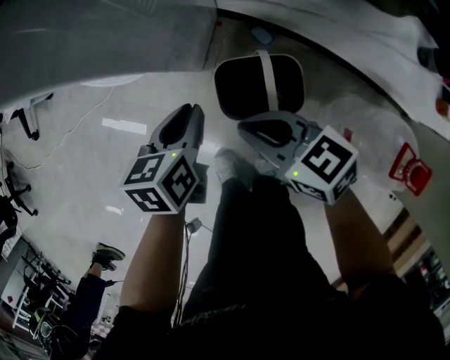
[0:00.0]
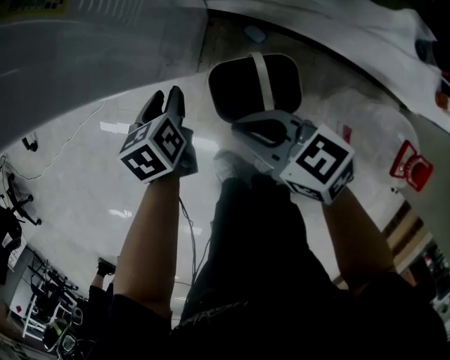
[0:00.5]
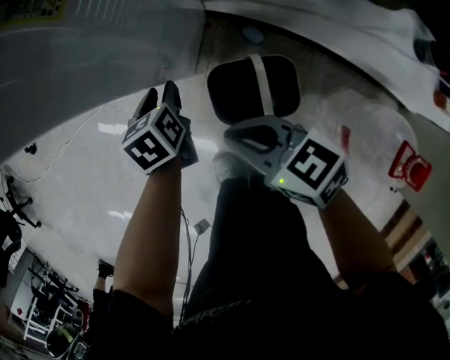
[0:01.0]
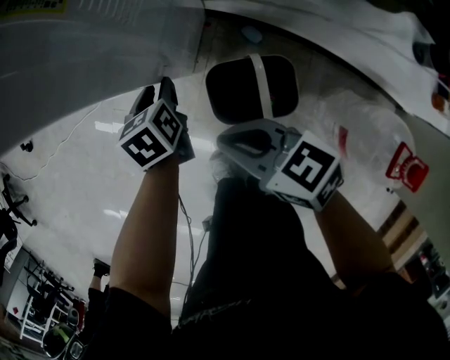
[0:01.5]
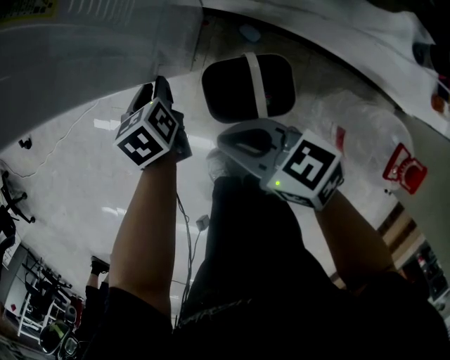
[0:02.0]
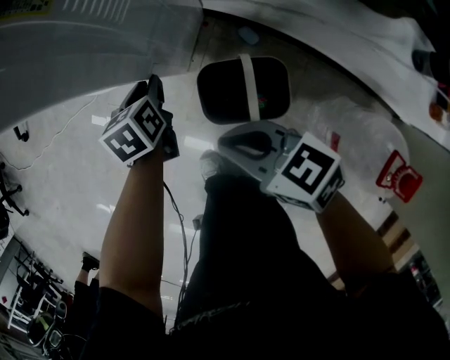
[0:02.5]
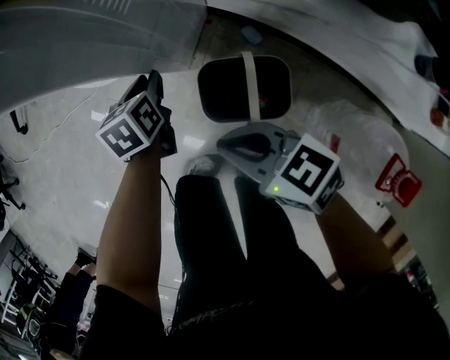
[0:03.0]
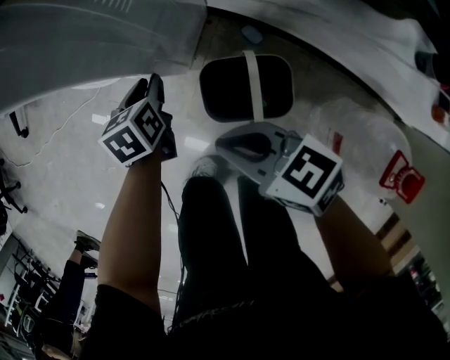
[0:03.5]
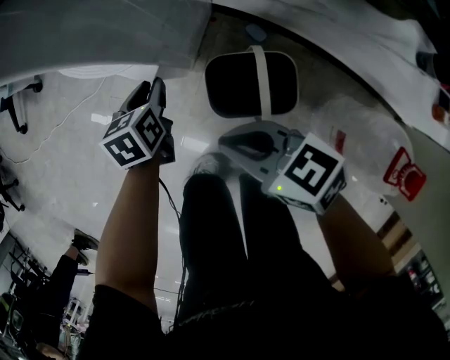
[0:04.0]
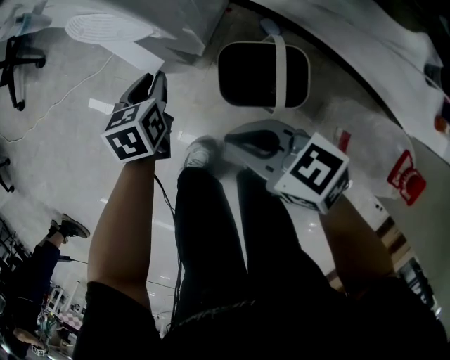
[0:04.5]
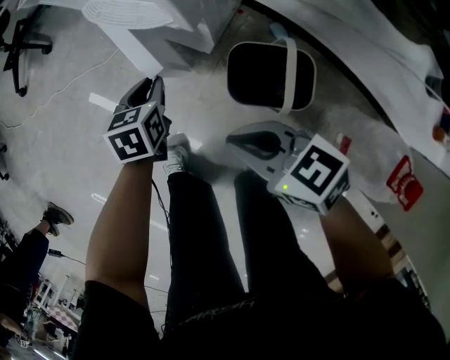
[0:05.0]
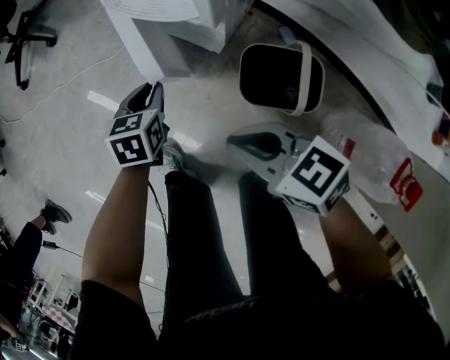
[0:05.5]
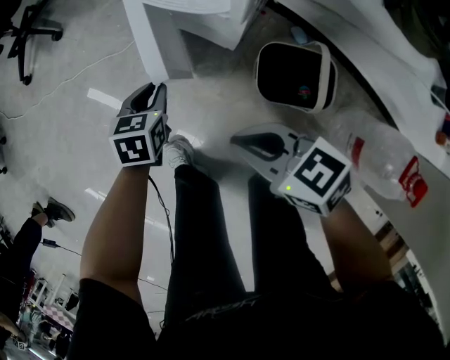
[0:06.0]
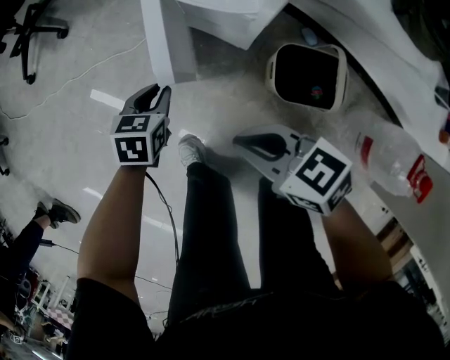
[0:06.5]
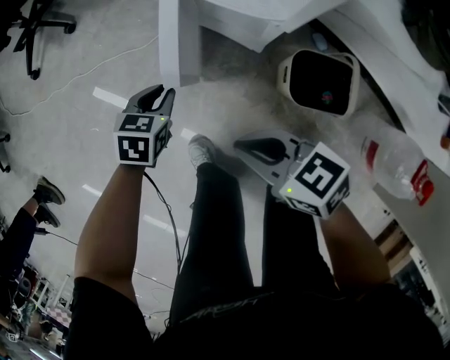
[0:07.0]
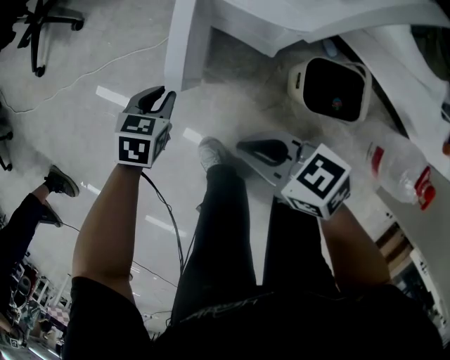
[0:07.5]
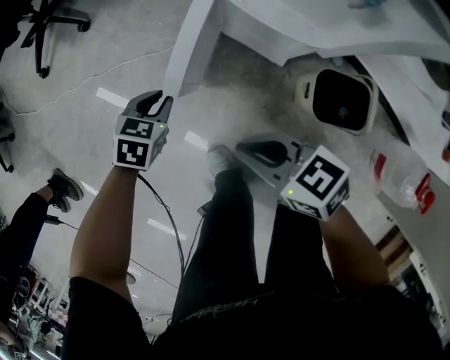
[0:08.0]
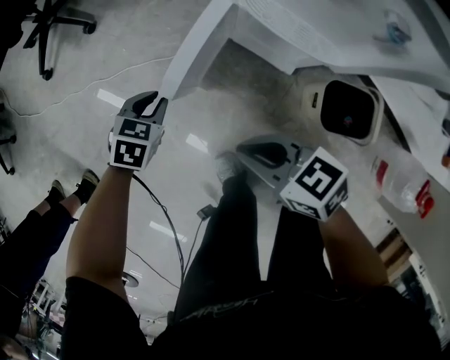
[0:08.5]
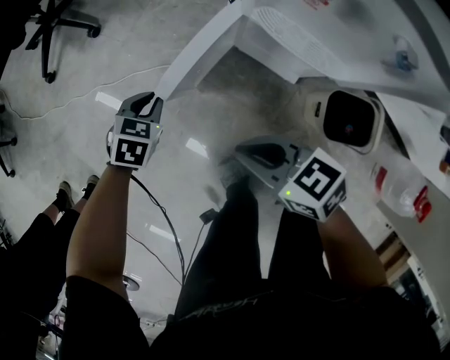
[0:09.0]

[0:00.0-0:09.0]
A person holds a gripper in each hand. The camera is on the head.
0:00.0 to 0:02.0: The left gripper goes some 10 cm forward and downward.
0:02.0 to 0:04.5: Both grippers travel together to the left, approximately 5 cm.
0:04.5 to 0:07.0: The grippers both shift to the left by some 20 cm.
0:07.0 to 0:09.0: Both grippers move forward and to the left, some 20 cm.

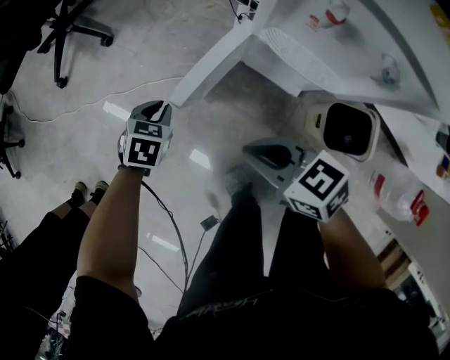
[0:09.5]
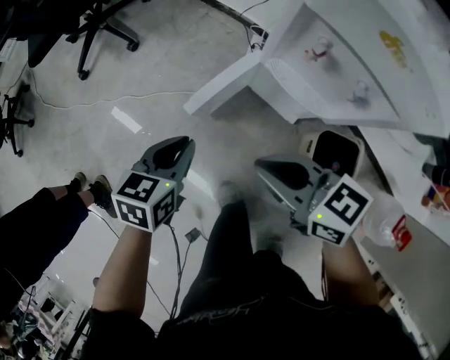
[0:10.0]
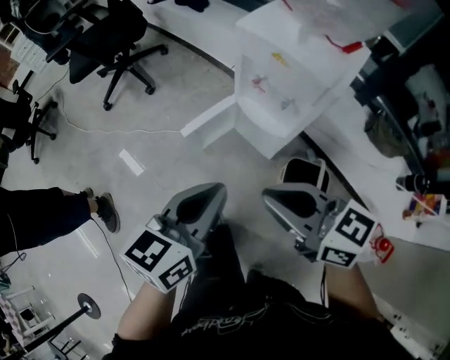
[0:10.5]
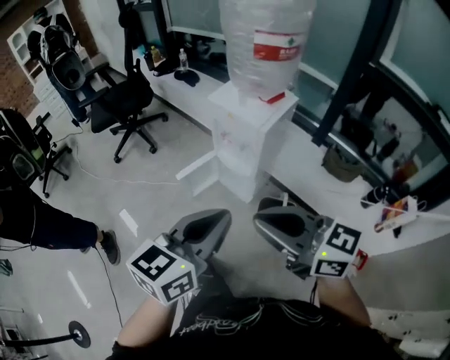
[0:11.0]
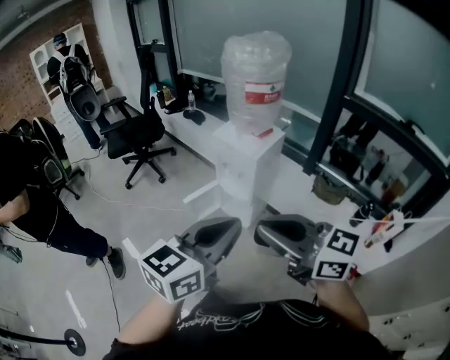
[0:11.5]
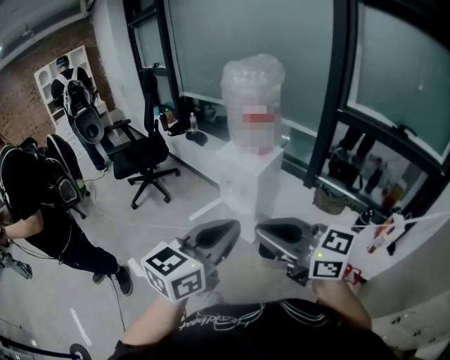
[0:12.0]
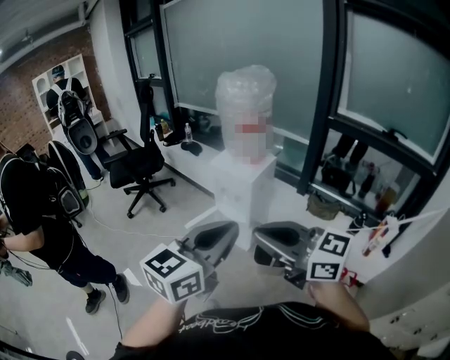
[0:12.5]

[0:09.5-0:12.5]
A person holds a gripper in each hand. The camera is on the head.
0:09.5 to 0:11.0: The grippers both shift upward and backward by about 70 cm. The left gripper points its fingers approximately 60 degrees further upward, while the right gripper rotates some 40 degrees.
0:11.0 to 0:12.5: Both grippers travel together upward and backward, about 20 cm.

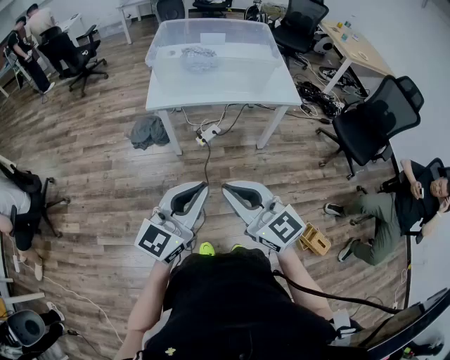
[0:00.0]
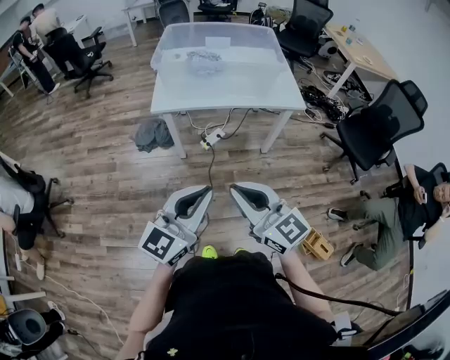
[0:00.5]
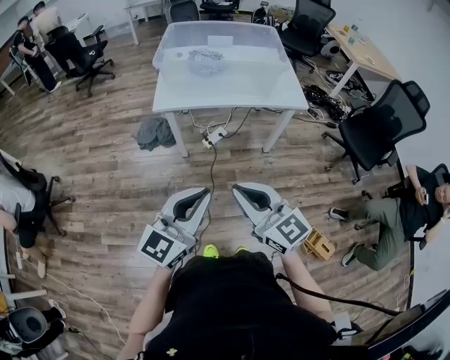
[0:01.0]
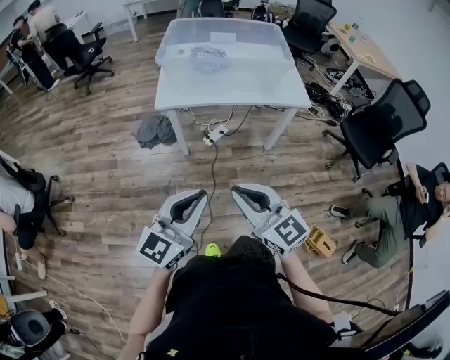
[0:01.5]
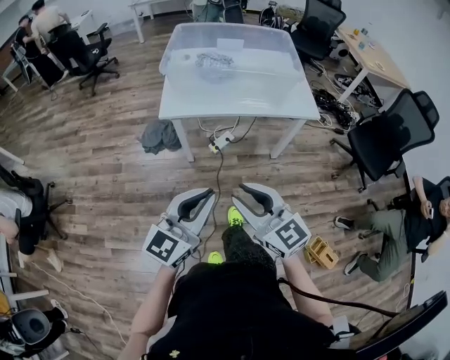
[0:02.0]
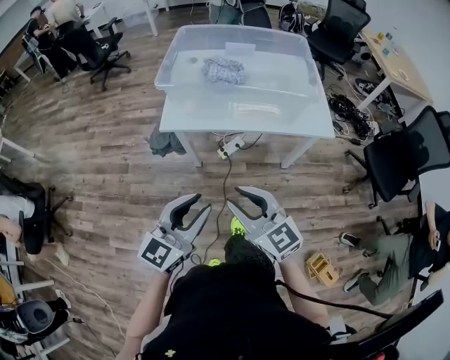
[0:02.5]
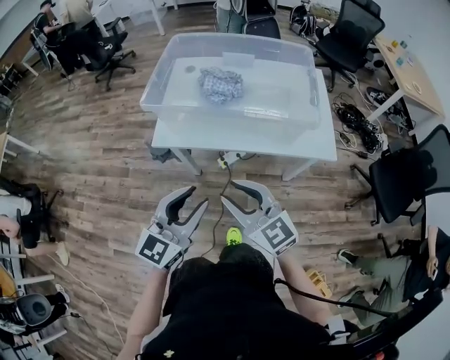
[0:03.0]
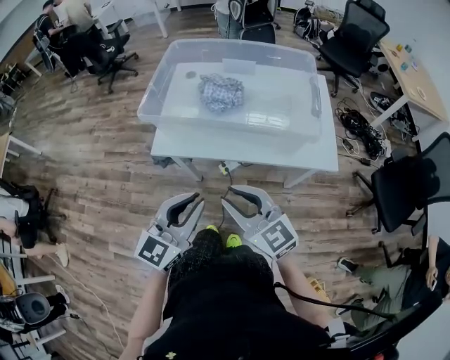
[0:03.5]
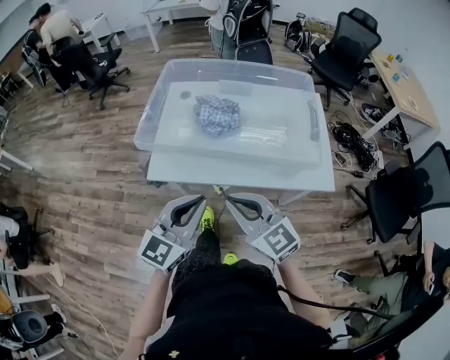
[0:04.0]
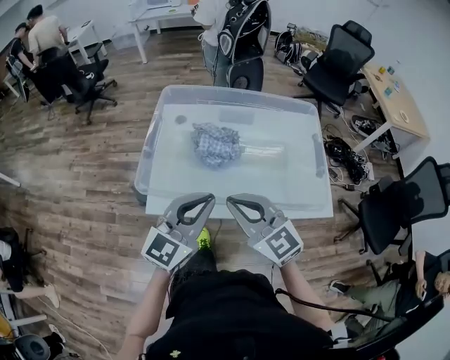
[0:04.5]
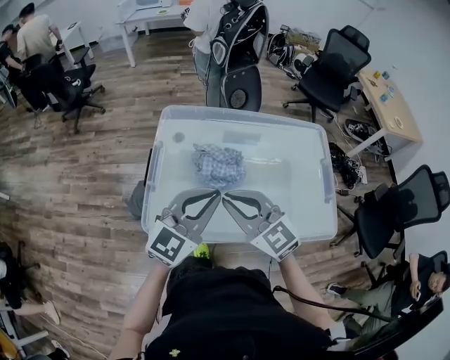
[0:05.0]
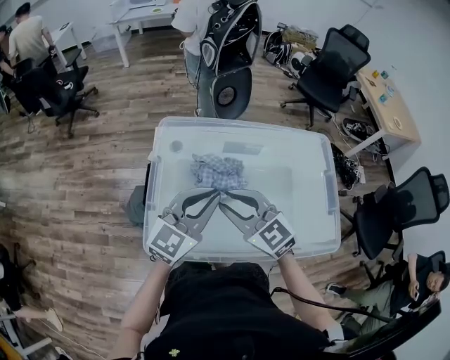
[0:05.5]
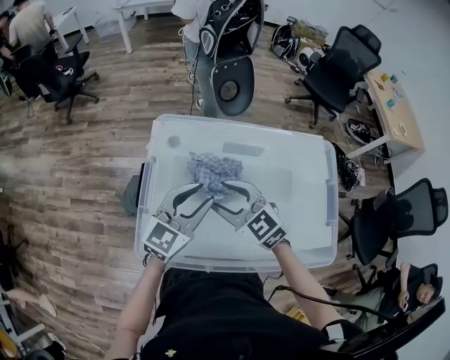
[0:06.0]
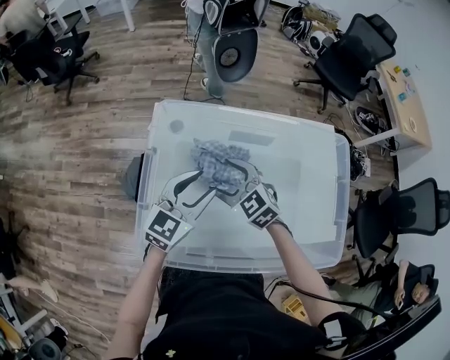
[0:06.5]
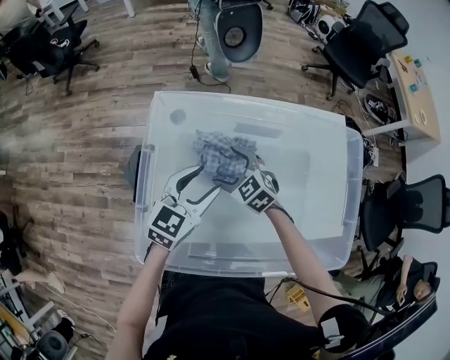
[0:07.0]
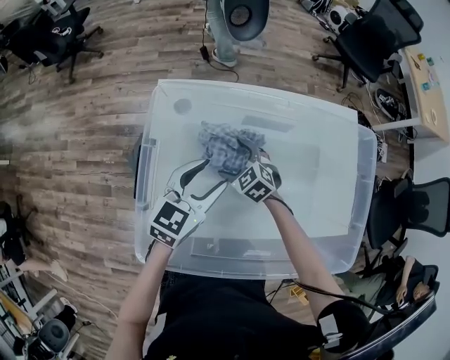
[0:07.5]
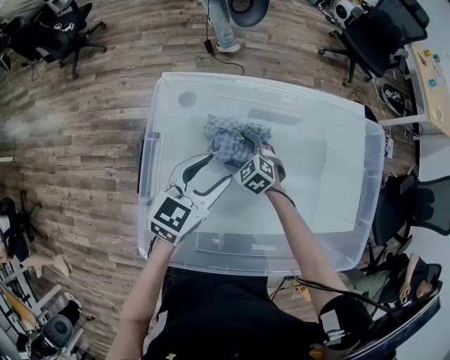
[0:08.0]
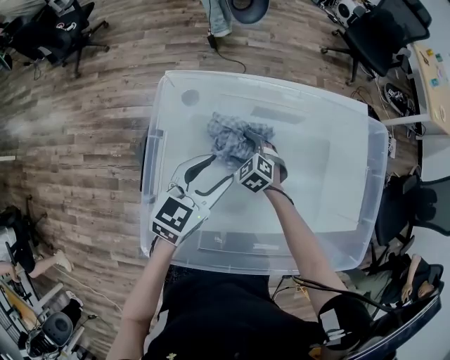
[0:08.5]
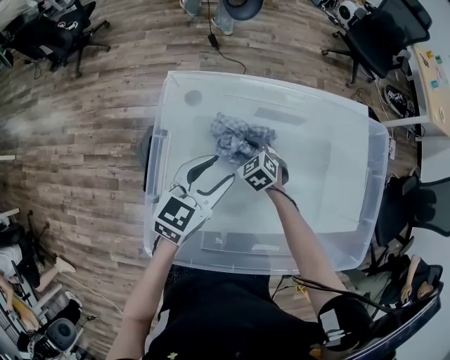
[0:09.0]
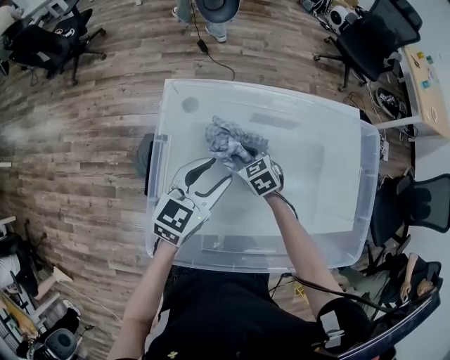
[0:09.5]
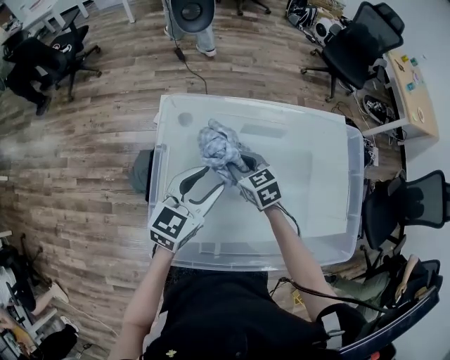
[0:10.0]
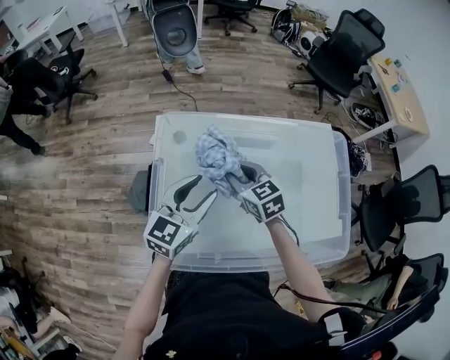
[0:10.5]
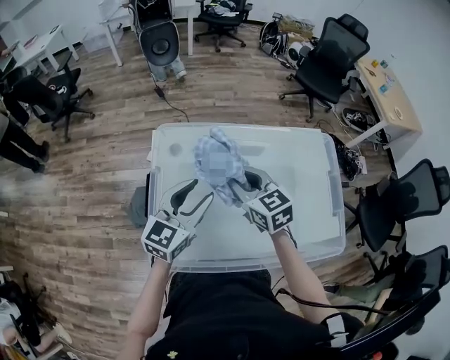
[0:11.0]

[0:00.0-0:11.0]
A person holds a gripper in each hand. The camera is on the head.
0:00.0 to 0:02.0: The grippers both shift forward by approximately 5 cm.
0:02.0 to 0:03.5: The right gripper is displaced forward by some 25 cm. The left gripper goes some 30 cm forward and to the right.
0:03.5 to 0:05.5: The grippers both shift forward by roughly 40 cm.
0:05.5 to 0:07.5: The right gripper goes some 30 cm downward and forward, tips its fingers downward by some 30 degrees, and opens up. Meanwhile the left gripper travels downward and forward by roughly 15 cm, turns by roughly 20 degrees, and opens up.
0:07.5 to 0:09.0: The right gripper closes its fingers.
0:09.0 to 0:11.0: The right gripper heads upward, covering about 25 cm, and swivels about 40 degrees. The left gripper moves upward, approximately 10 cm.

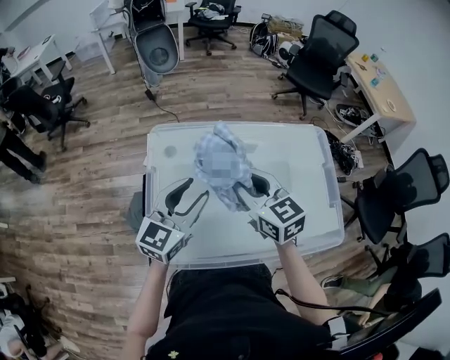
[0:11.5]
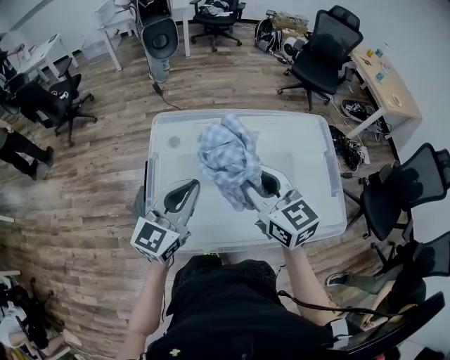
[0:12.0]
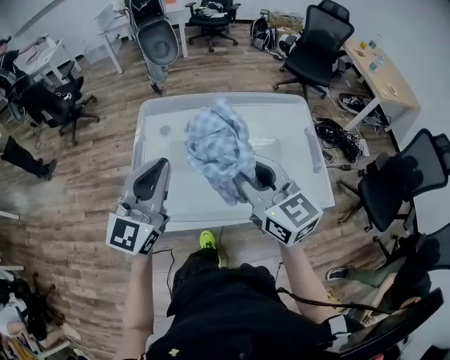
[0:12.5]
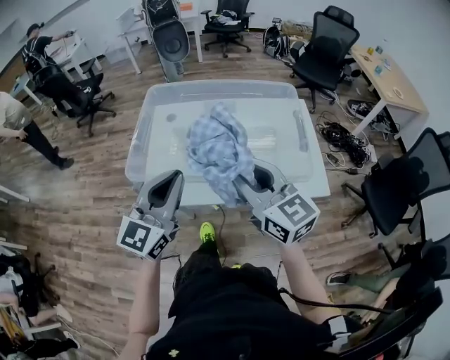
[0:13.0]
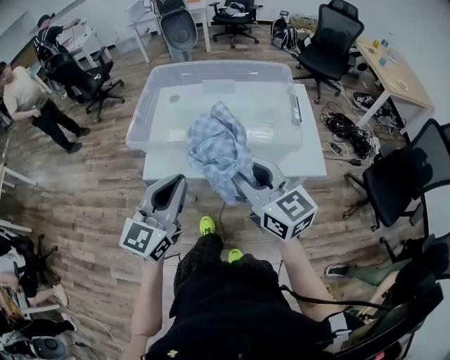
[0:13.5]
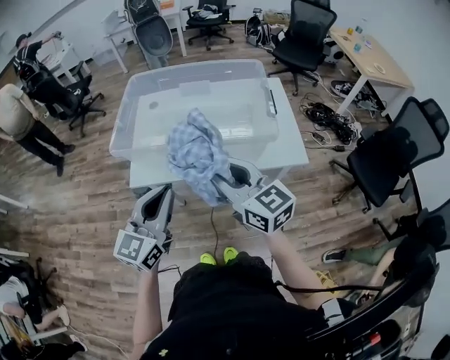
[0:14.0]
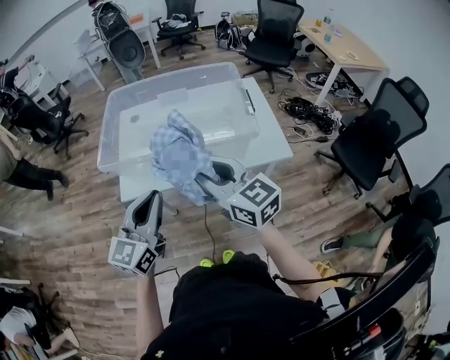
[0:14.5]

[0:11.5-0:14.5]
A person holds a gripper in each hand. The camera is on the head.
0:11.5 to 0:13.0: The right gripper is displaced backward and to the right by roughly 30 cm. Meanwhile the left gripper is displaced backward by approximately 25 cm, and closes its fingers.
0:13.0 to 0:14.5: The two grippers go approximately 10 cm backward.
